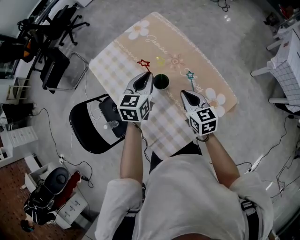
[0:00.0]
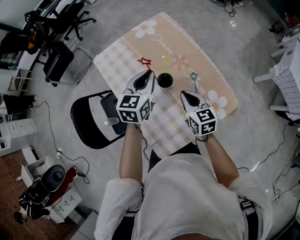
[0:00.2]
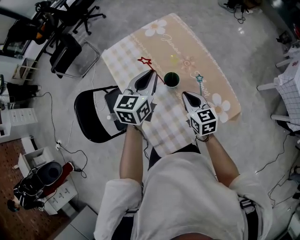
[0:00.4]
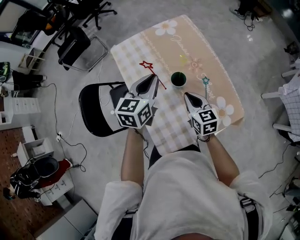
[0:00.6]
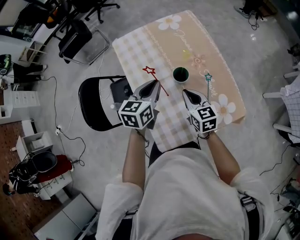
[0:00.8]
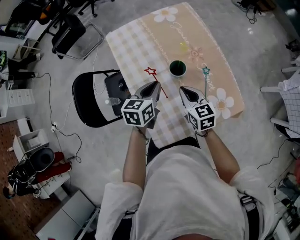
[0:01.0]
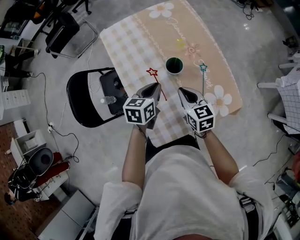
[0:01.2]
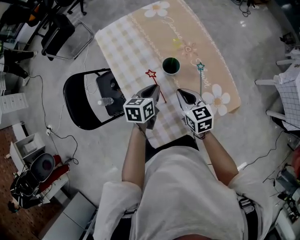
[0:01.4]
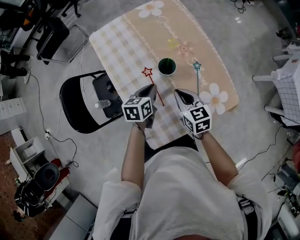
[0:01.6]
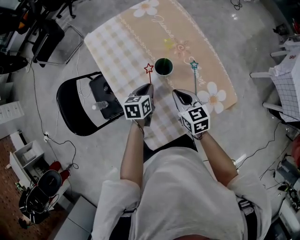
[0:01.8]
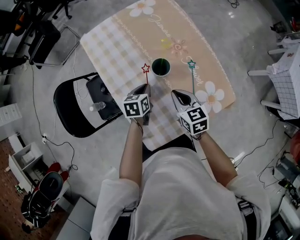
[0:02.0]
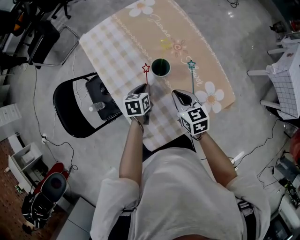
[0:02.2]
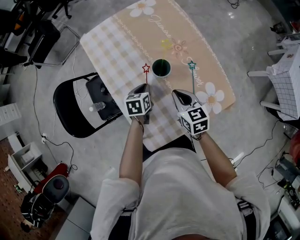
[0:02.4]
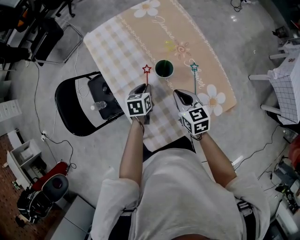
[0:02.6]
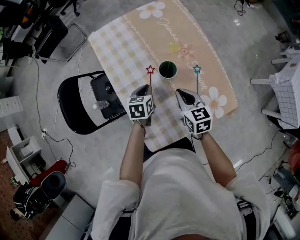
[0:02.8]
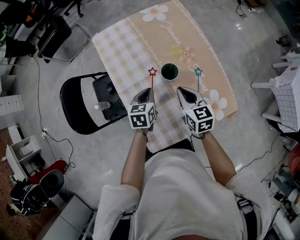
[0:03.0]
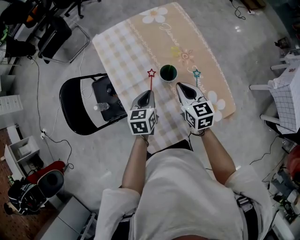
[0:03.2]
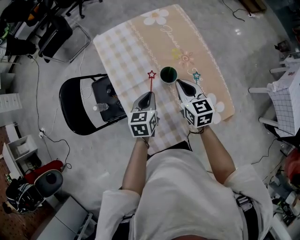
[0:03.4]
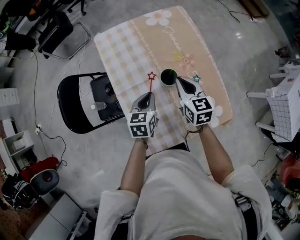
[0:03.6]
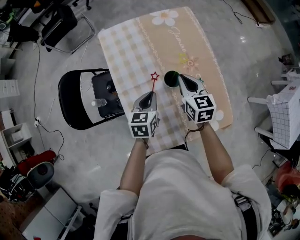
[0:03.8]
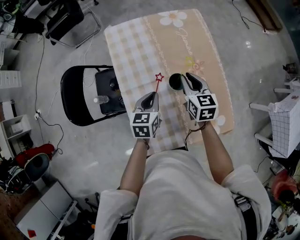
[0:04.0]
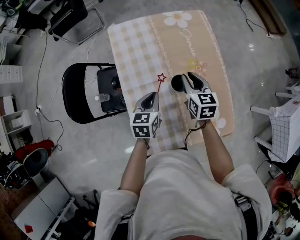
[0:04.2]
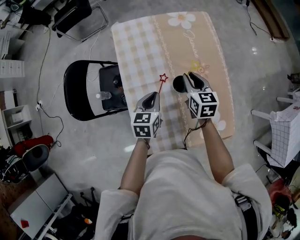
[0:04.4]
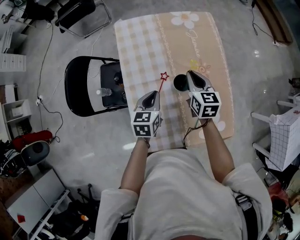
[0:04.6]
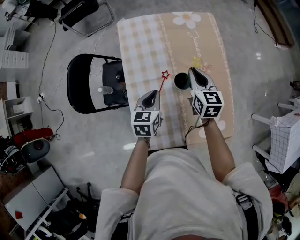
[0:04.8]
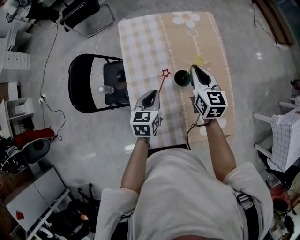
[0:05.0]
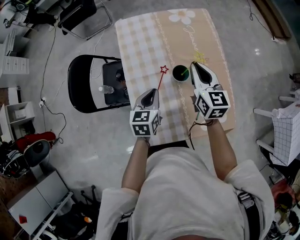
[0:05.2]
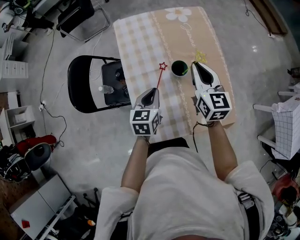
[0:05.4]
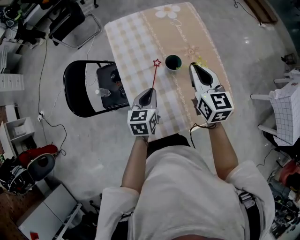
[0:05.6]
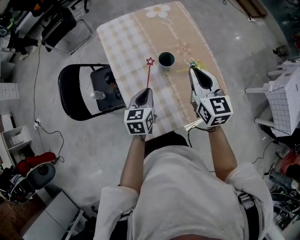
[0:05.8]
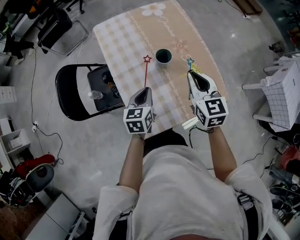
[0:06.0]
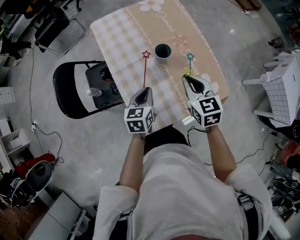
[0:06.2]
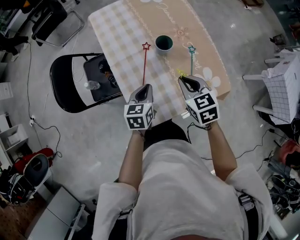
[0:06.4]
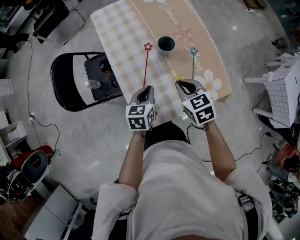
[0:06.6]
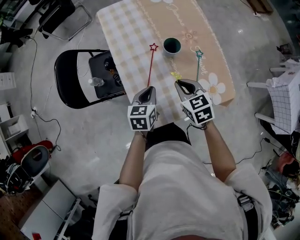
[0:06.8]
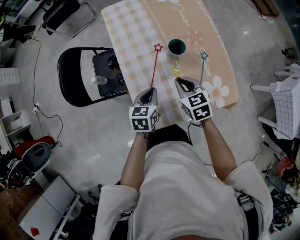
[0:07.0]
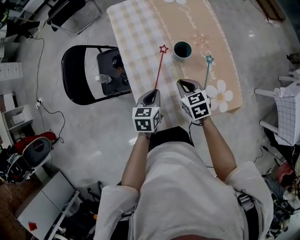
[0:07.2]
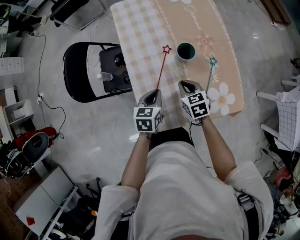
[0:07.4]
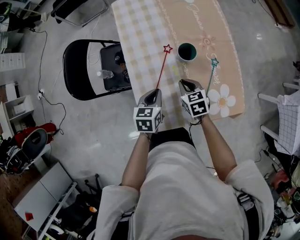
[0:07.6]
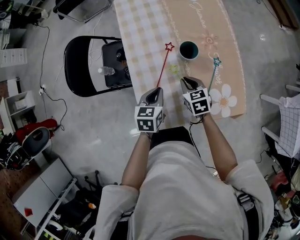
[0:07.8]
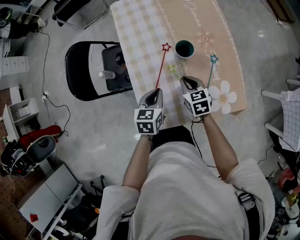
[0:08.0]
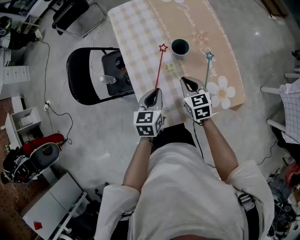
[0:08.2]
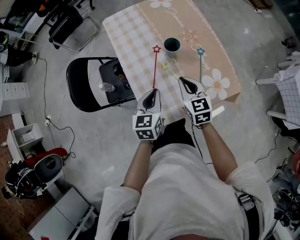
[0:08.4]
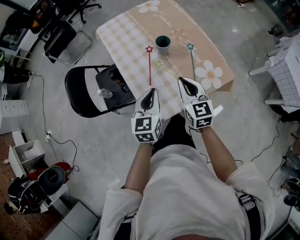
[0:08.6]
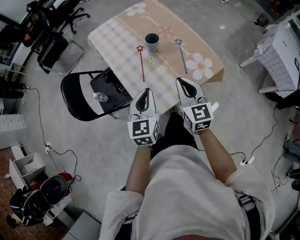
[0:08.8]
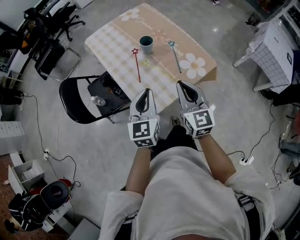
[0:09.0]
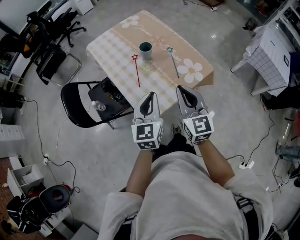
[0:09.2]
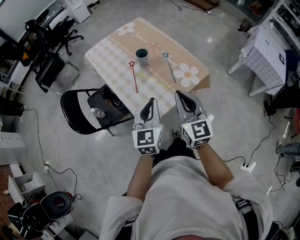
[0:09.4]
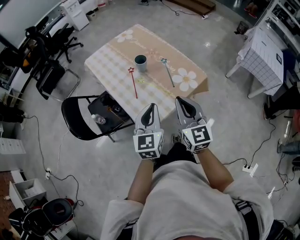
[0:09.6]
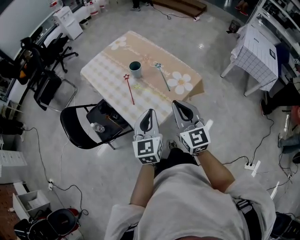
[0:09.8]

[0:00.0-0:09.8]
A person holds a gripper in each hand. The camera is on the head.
0:00.0 to 0:01.4: The right gripper moves to the left, approximately 5 cm, while the left gripper shifts about 15 cm downward and backward, and swivels some 30 degrees.
0:01.4 to 0:02.8: The left gripper heads downward, covering about 5 cm.
0:02.8 to 0:04.2: The left gripper moves upward, roughly 5 cm; the right gripper goes roughly 15 cm forward, and opens up.
0:04.2 to 0:05.6: The left gripper heads backward, covering approximately 10 cm. The right gripper travels upward and backward by some 15 cm.
0:05.6 to 0:07.0: The left gripper travels downward and backward by about 10 cm, while the right gripper shifts some 20 cm downward and backward, and swivels approximately 30 degrees.
0:07.0 to 0:08.4: The right gripper moves some 10 cm downward and comes back; the left gripper travels upward by about 5 cm.
0:08.4 to 0:09.8: Both grippers move backward and upward, roughly 25 cm. The left gripper swivels some 30 degrees. Meanwhile the right gripper turns by some 30 degrees.

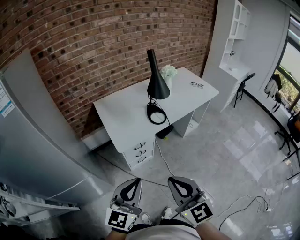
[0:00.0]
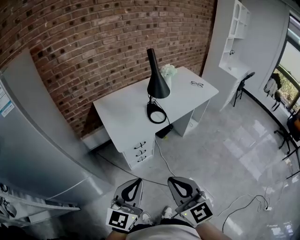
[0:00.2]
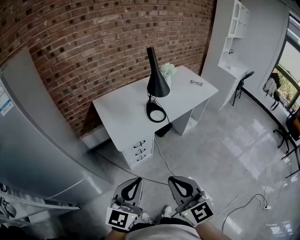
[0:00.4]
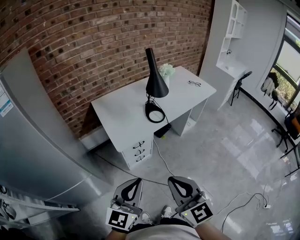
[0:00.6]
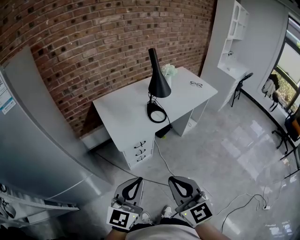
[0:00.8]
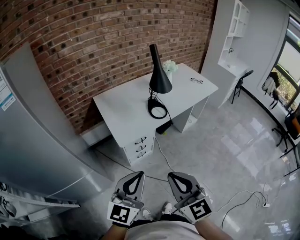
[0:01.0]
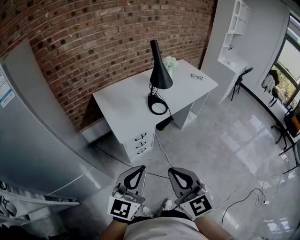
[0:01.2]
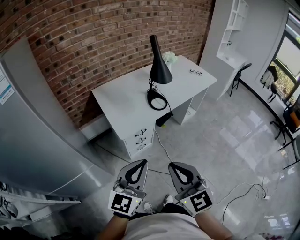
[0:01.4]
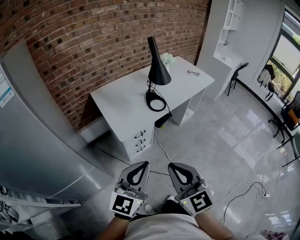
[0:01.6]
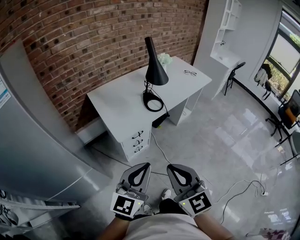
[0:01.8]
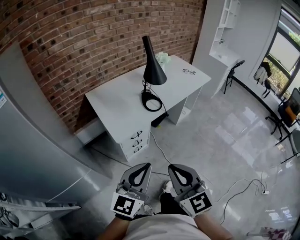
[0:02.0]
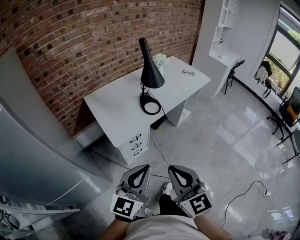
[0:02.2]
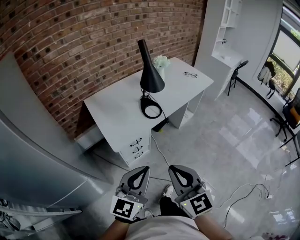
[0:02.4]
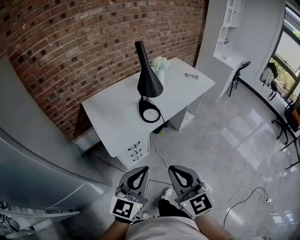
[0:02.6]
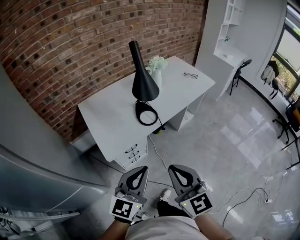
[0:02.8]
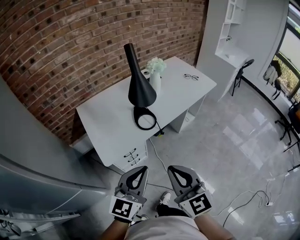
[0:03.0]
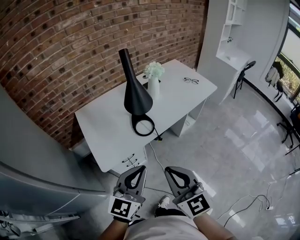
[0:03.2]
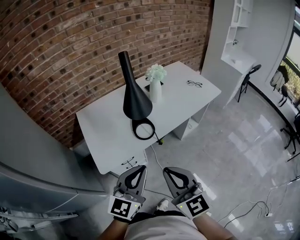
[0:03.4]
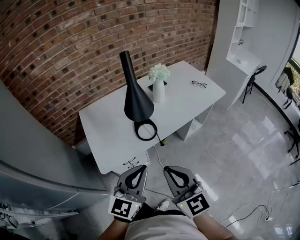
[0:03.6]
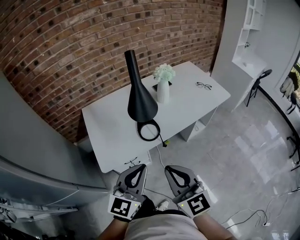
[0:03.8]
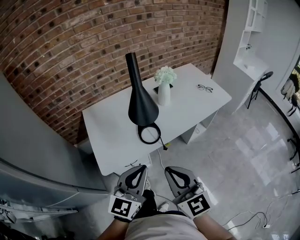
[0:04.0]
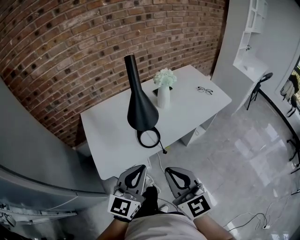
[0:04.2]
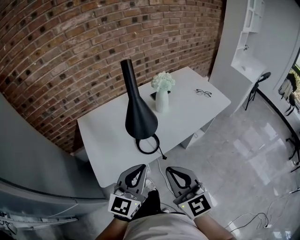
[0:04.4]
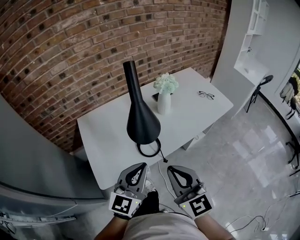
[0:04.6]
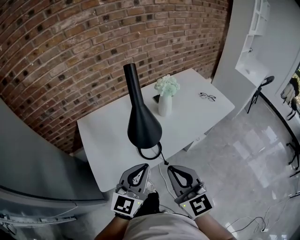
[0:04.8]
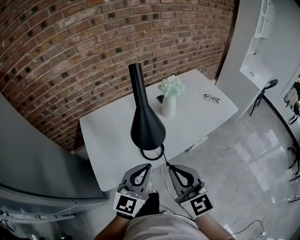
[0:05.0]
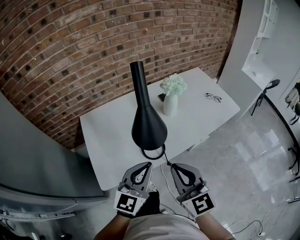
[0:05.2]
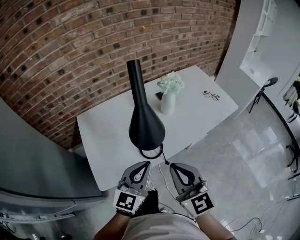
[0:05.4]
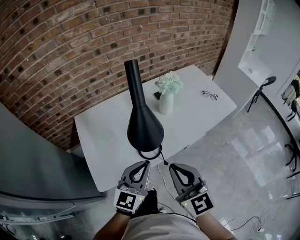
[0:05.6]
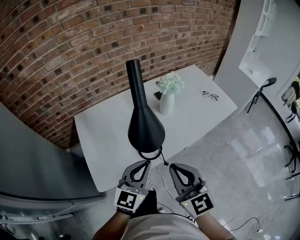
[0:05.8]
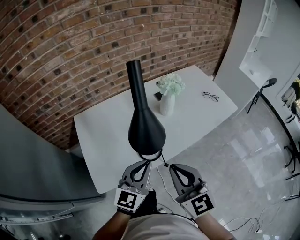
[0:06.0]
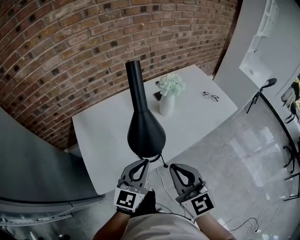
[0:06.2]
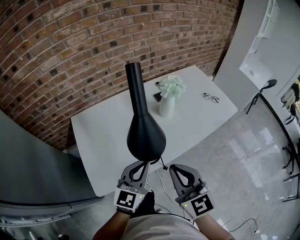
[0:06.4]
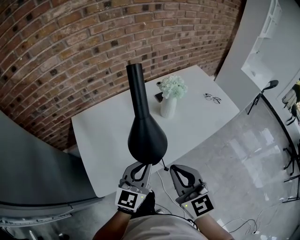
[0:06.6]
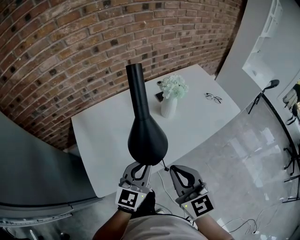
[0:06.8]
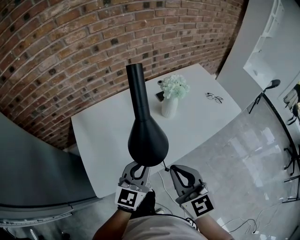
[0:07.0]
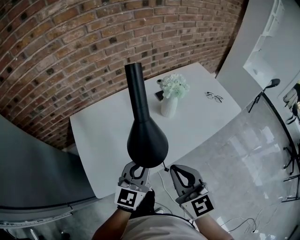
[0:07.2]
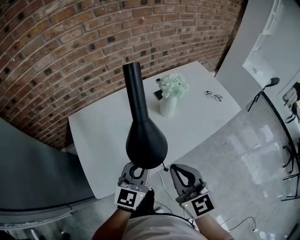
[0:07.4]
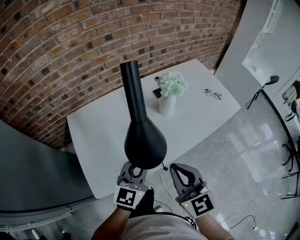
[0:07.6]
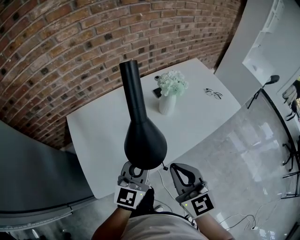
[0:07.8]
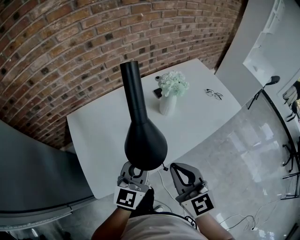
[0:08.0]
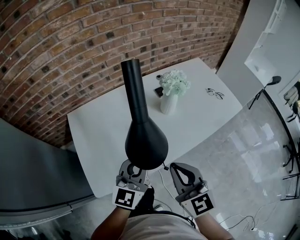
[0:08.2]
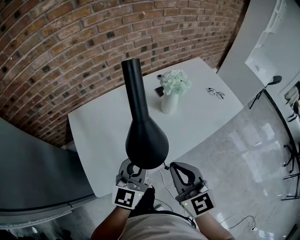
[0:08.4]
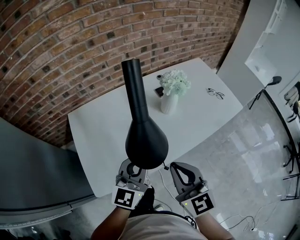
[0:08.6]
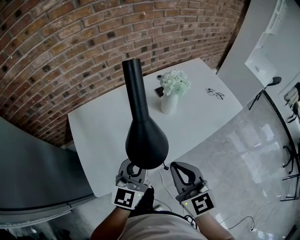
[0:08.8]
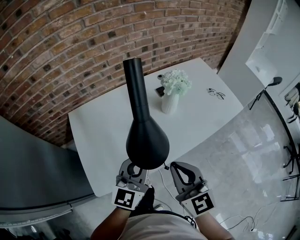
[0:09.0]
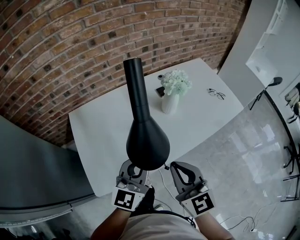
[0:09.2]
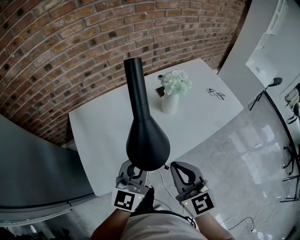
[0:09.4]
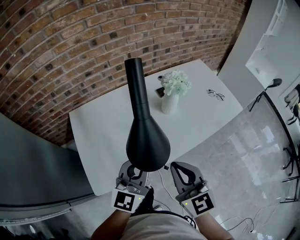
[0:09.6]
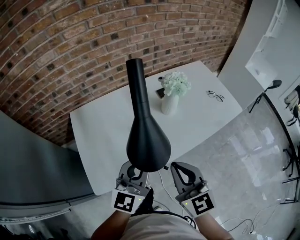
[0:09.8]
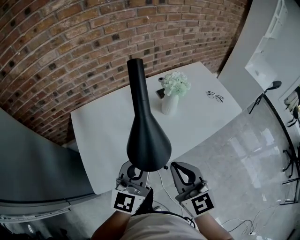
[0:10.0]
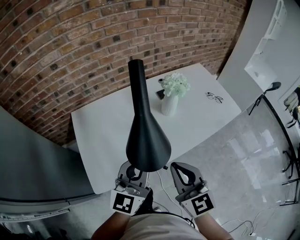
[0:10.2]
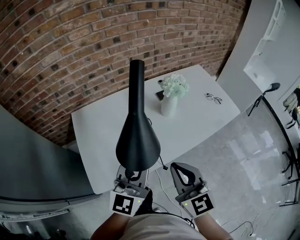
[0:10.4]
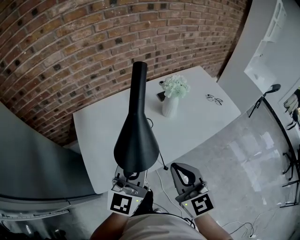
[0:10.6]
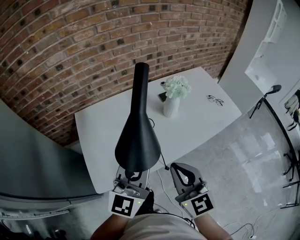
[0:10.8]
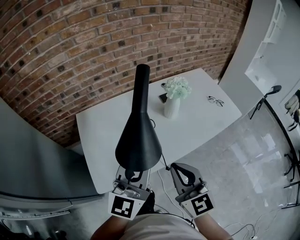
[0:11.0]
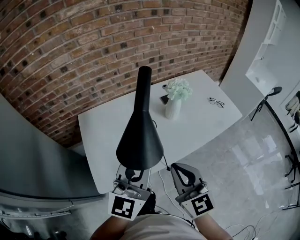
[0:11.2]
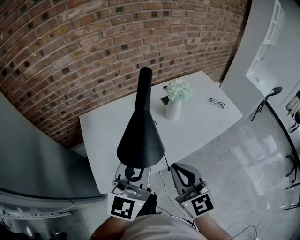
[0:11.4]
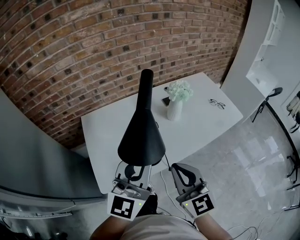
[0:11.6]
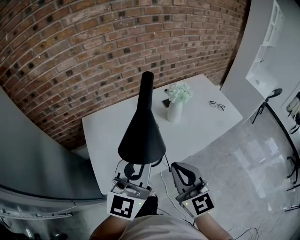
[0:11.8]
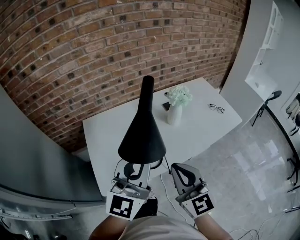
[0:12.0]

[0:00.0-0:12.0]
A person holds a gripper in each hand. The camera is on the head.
0:00.0 to 0:01.6: The right gripper shifts approximately 5 cm to the left.
0:01.6 to 0:03.0: The grippers both shift forward and to the right by approximately 20 cm.
0:03.0 to 0:04.4: The two grippers go some 15 cm forward.
0:04.4 to 0:06.0: Both grippers move forward, approximately 10 cm.
0:06.0 to 0:07.6: Both grippers travel together forward, about 5 cm.
0:07.6 to 0:09.0: The grippers make only small movements.
0:09.0 to 0:10.4: The left gripper travels upward by some 5 cm.
0:10.4 to 0:12.0: The left gripper travels upward by approximately 10 cm.

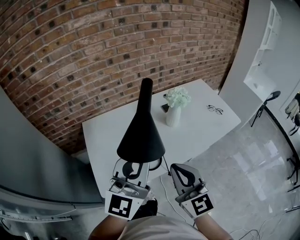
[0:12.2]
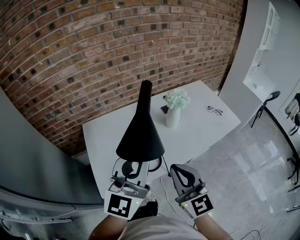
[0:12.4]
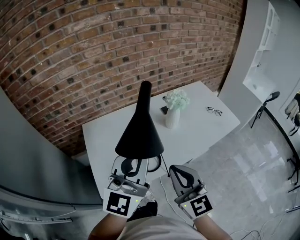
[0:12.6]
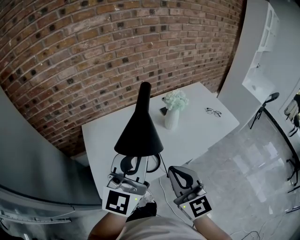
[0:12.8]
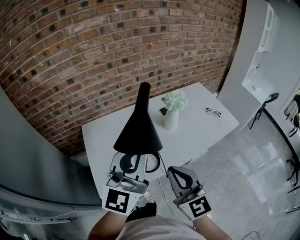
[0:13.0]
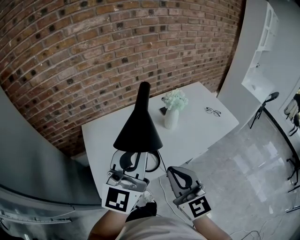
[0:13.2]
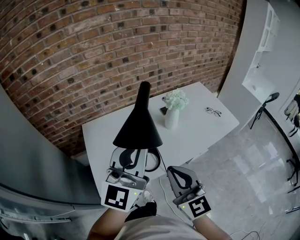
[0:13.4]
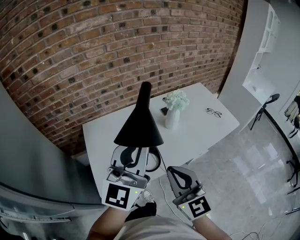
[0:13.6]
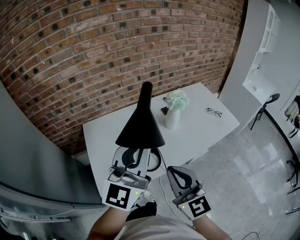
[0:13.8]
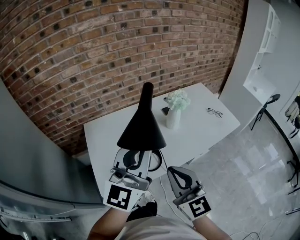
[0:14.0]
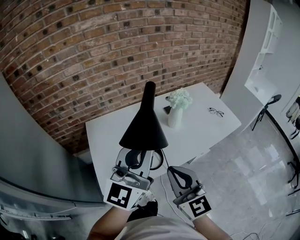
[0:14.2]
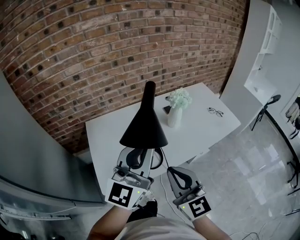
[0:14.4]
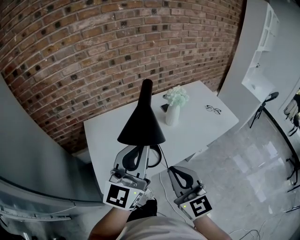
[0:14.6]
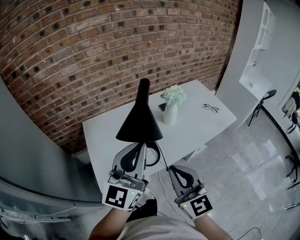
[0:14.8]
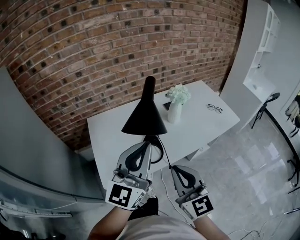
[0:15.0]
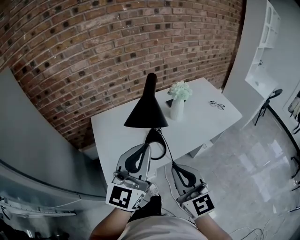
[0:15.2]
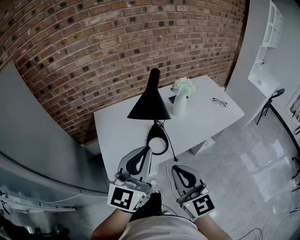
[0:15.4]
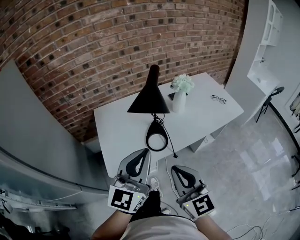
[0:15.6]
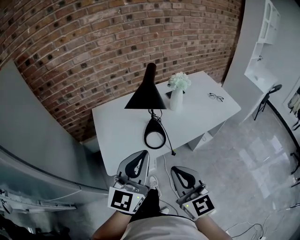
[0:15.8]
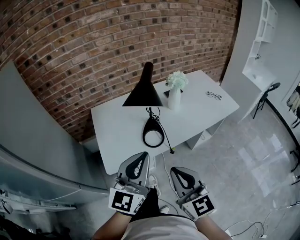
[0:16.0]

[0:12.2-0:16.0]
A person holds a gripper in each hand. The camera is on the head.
0:12.2 to 0:14.8: The grippers stay close to where they were, moving slightly.
0:14.8 to 0:16.0: The right gripper shifts some 10 cm backward. Meanwhile the left gripper heads backward and downward, covering about 15 cm.
